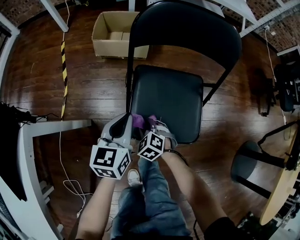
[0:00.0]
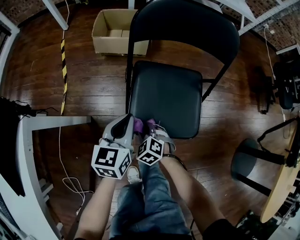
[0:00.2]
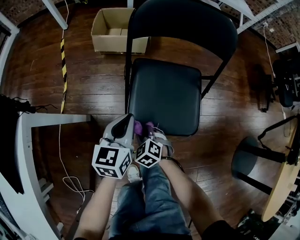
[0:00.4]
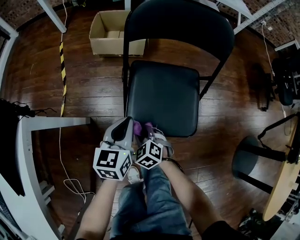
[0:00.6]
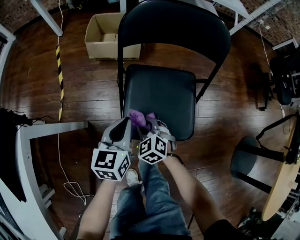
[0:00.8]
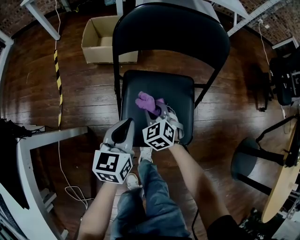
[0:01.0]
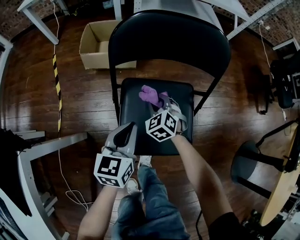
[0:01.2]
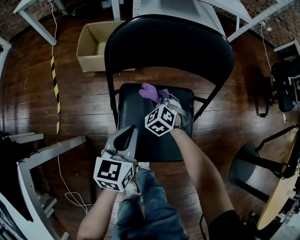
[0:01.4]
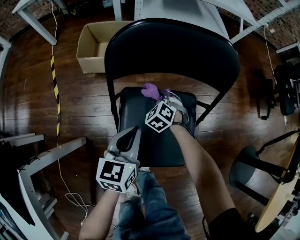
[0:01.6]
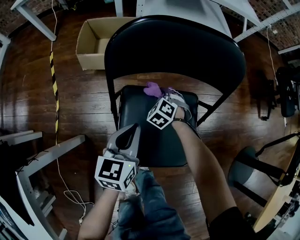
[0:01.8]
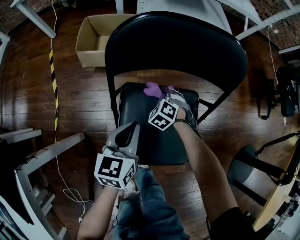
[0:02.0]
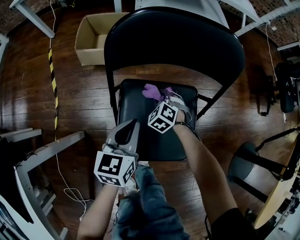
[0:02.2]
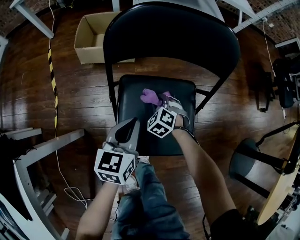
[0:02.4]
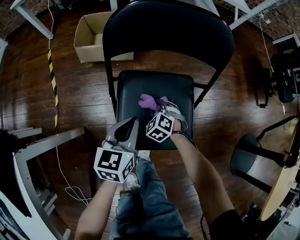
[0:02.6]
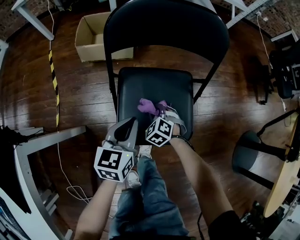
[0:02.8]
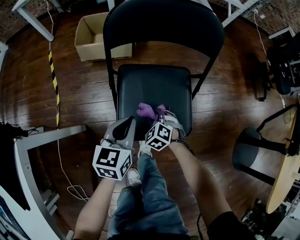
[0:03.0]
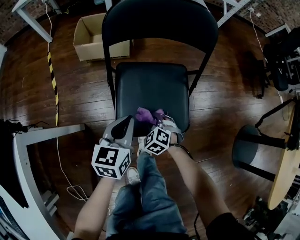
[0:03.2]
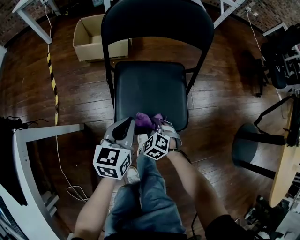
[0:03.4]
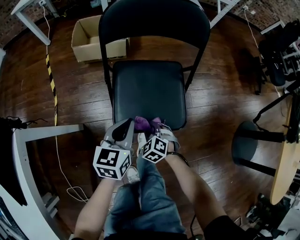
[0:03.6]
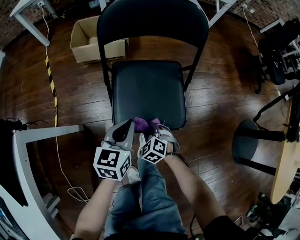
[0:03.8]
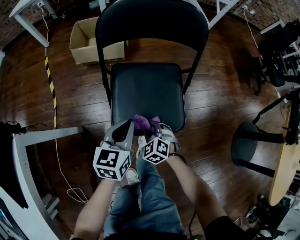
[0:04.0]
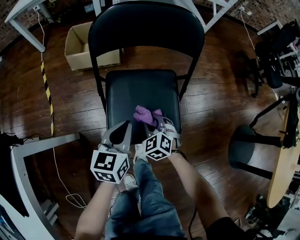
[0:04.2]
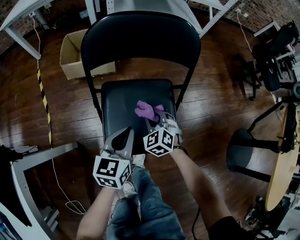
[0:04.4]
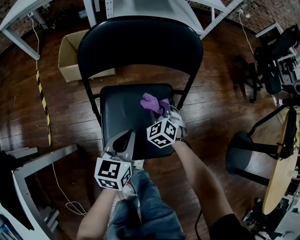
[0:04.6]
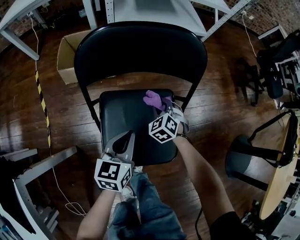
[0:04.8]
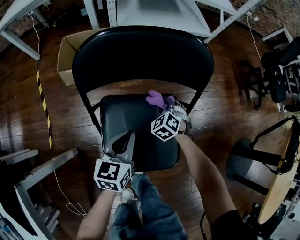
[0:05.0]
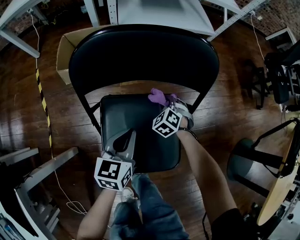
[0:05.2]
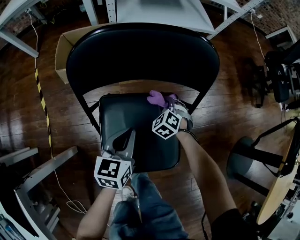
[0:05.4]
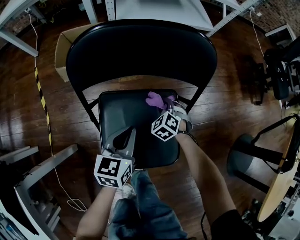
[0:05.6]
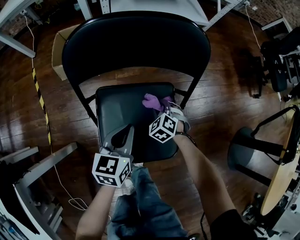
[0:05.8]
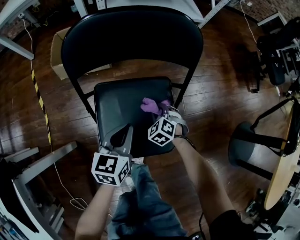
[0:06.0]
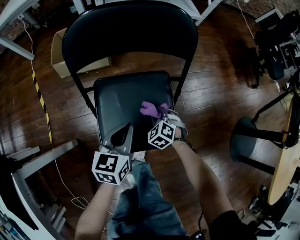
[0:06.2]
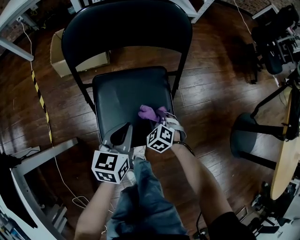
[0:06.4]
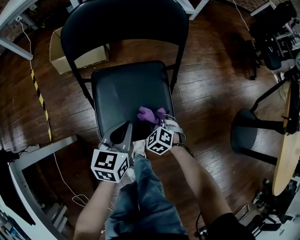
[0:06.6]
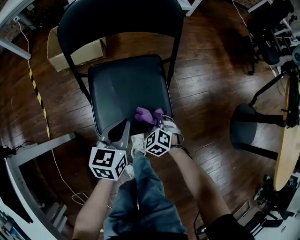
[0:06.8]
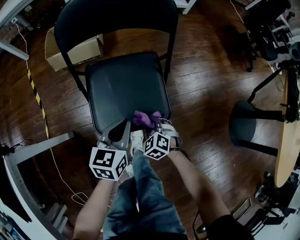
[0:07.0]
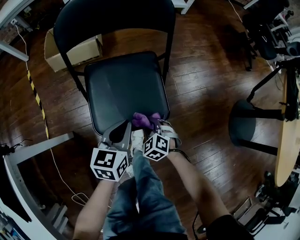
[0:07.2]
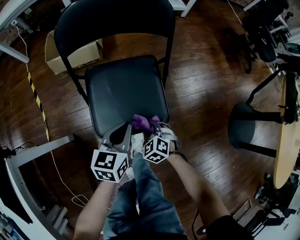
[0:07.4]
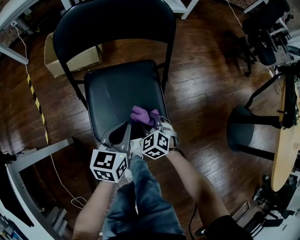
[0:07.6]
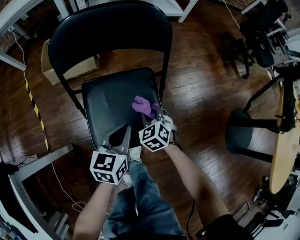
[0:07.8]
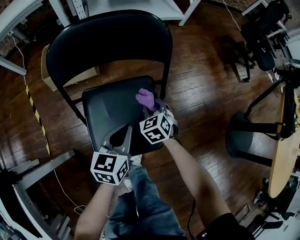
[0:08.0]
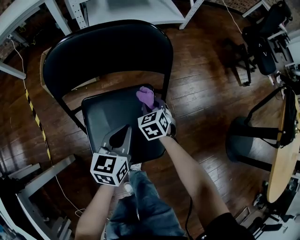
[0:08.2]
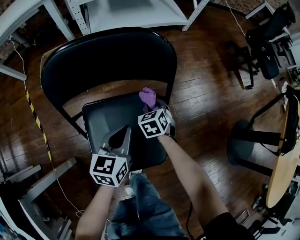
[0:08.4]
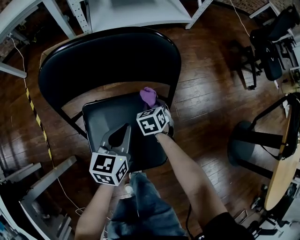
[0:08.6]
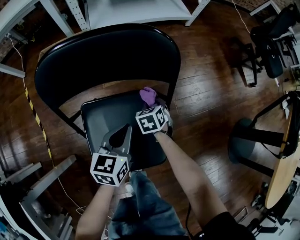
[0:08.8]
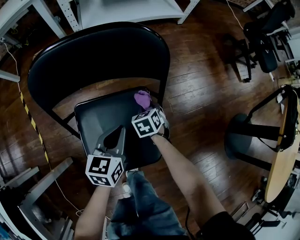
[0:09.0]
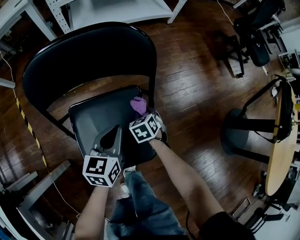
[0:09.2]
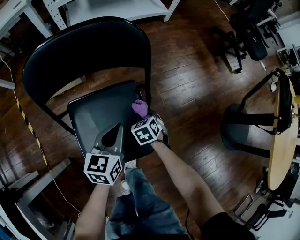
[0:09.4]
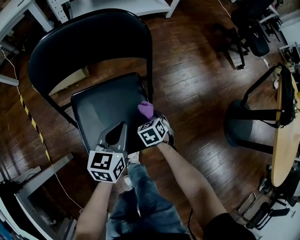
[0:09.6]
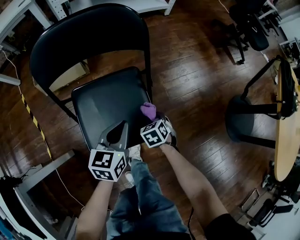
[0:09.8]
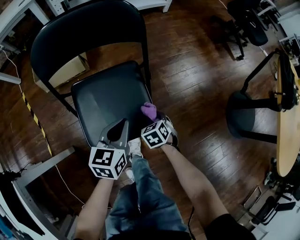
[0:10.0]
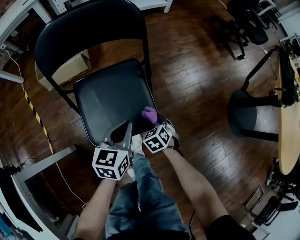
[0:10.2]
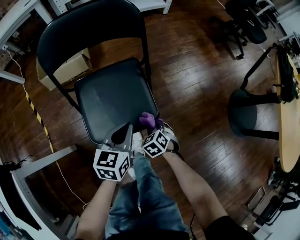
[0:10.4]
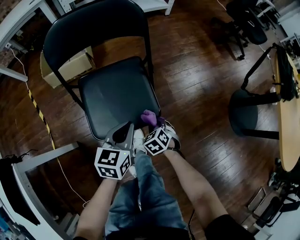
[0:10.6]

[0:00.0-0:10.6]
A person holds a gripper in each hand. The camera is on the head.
0:00.0 to 0:01.6: The left gripper is displaced forward and to the right by approximately 15 cm, while the right gripper goes about 30 cm forward and to the right.
0:01.6 to 0:03.0: The left gripper moves backward, approximately 10 cm; the right gripper travels backward by approximately 20 cm.
0:03.0 to 0:04.6: The left gripper shifts about 10 cm to the right and forward. Meanwhile the right gripper is displaced forward, to the right and upward by some 20 cm.
0:04.6 to 0:06.0: The right gripper shifts approximately 10 cm downward, and moves about 10 cm forward and comes back. Meanwhile the left gripper moves approximately 10 cm forward and comes back.
0:06.0 to 0:07.6: The left gripper travels backward by roughly 10 cm. The right gripper is displaced backward by about 15 cm.
0:07.6 to 0:09.0: The two grippers go roughly 20 cm forward. The right gripper rotates approximately 30 degrees.
0:09.0 to 0:10.6: The right gripper moves backward, approximately 30 cm; the left gripper heads backward and to the right, covering approximately 20 cm.

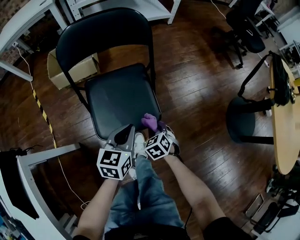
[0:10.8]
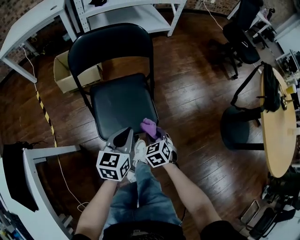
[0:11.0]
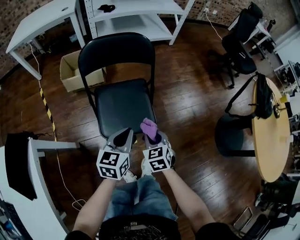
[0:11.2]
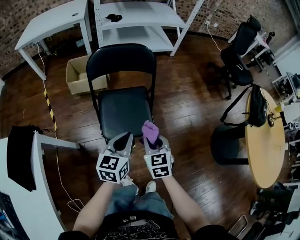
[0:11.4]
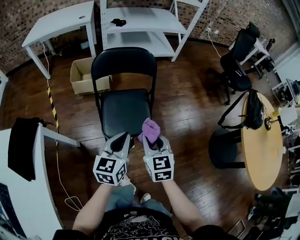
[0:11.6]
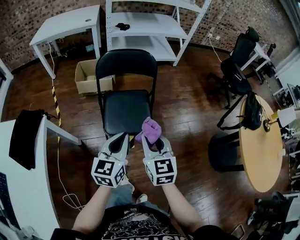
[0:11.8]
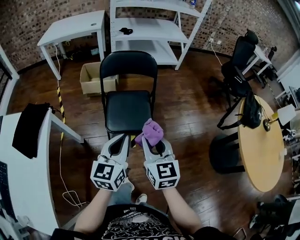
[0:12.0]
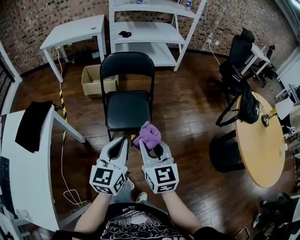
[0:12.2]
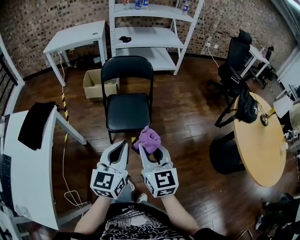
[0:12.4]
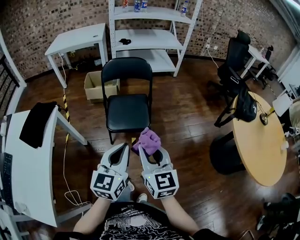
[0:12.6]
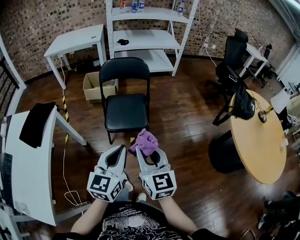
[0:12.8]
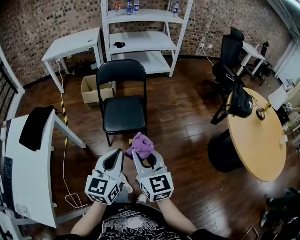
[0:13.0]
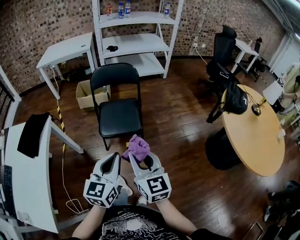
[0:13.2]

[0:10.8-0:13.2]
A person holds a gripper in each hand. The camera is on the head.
0:10.8 to 0:12.0: Both grippers move upward and backward, roughly 40 cm. The left gripper rotates some 30 degrees; the right gripper angles its fingers upward, by about 50 degrees.
0:12.0 to 0:13.2: The two grippers go roughly 15 cm backward.

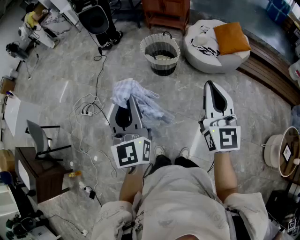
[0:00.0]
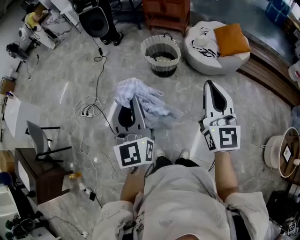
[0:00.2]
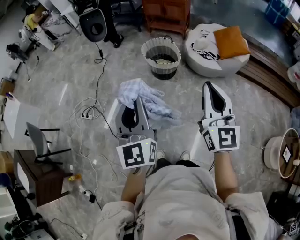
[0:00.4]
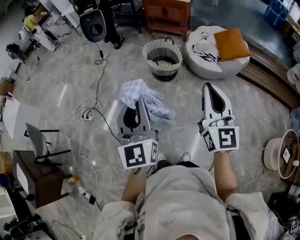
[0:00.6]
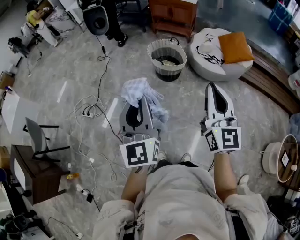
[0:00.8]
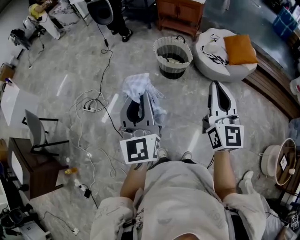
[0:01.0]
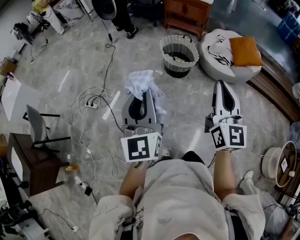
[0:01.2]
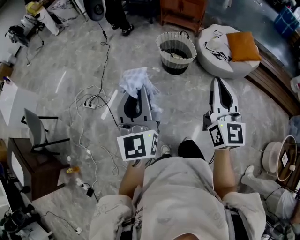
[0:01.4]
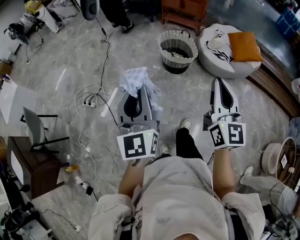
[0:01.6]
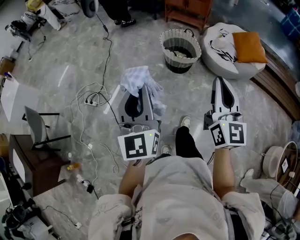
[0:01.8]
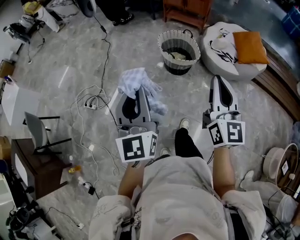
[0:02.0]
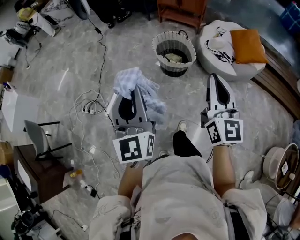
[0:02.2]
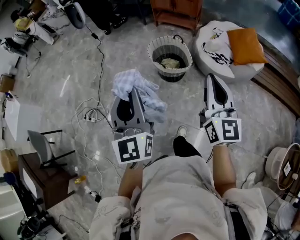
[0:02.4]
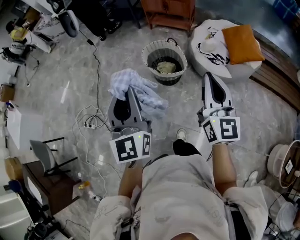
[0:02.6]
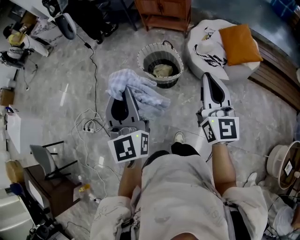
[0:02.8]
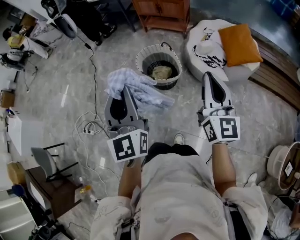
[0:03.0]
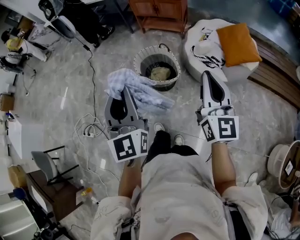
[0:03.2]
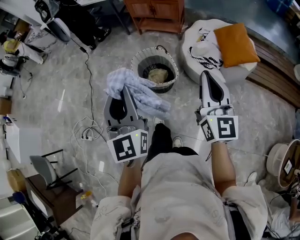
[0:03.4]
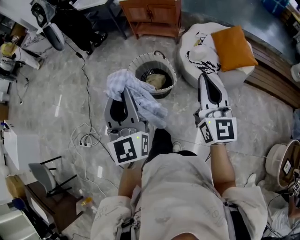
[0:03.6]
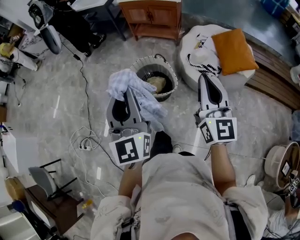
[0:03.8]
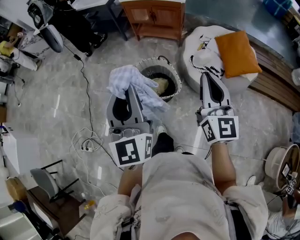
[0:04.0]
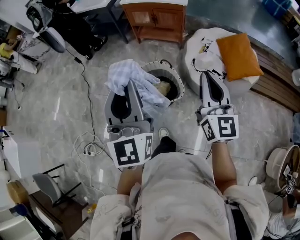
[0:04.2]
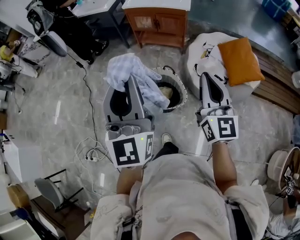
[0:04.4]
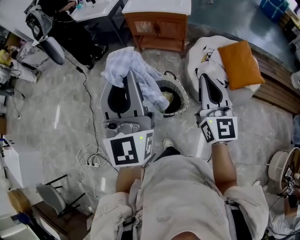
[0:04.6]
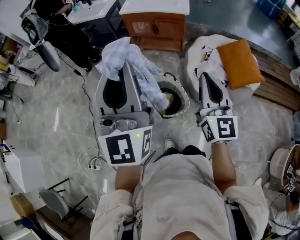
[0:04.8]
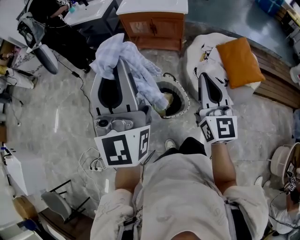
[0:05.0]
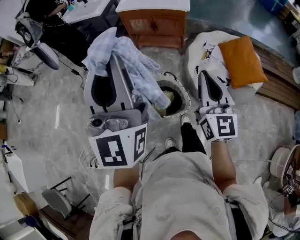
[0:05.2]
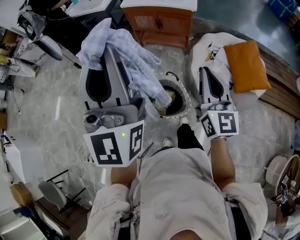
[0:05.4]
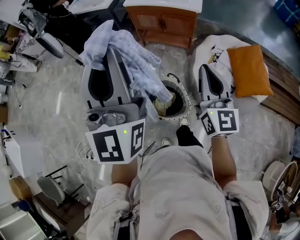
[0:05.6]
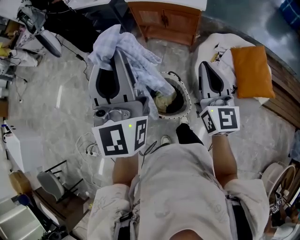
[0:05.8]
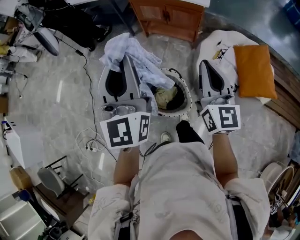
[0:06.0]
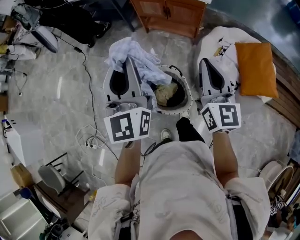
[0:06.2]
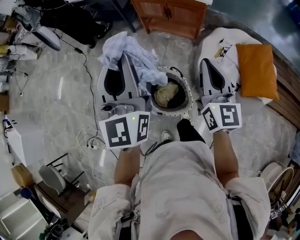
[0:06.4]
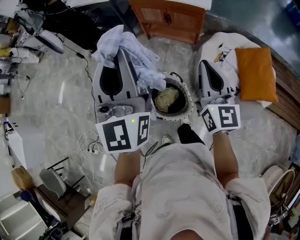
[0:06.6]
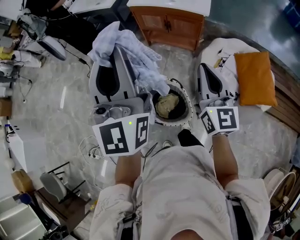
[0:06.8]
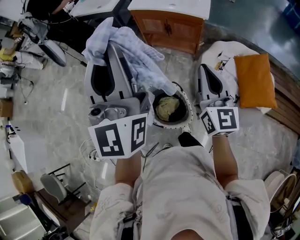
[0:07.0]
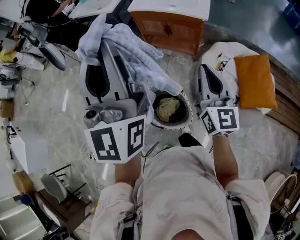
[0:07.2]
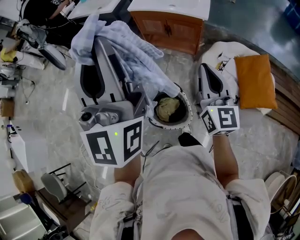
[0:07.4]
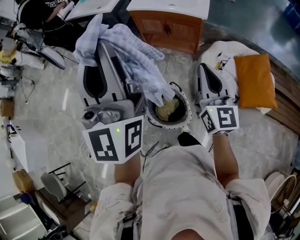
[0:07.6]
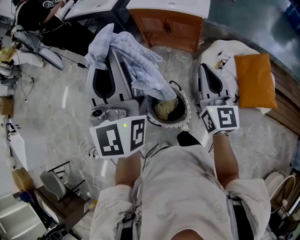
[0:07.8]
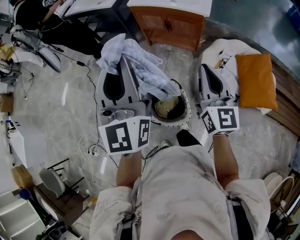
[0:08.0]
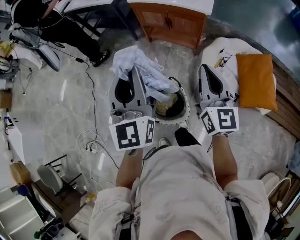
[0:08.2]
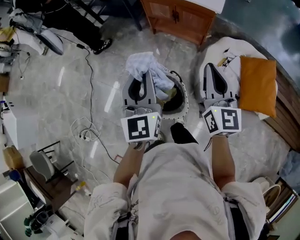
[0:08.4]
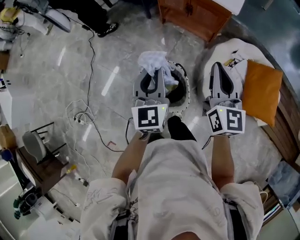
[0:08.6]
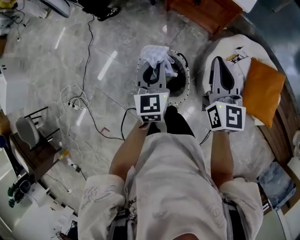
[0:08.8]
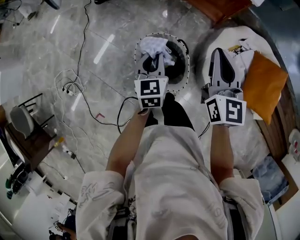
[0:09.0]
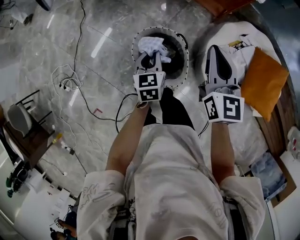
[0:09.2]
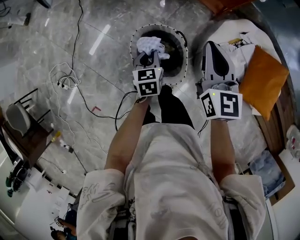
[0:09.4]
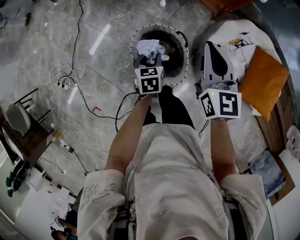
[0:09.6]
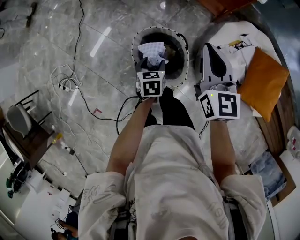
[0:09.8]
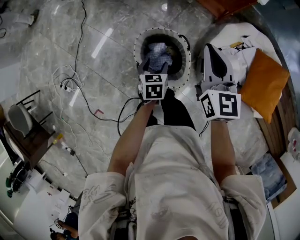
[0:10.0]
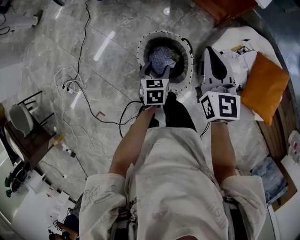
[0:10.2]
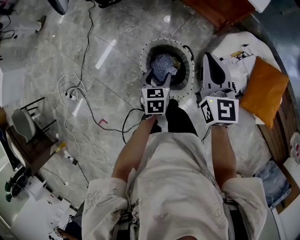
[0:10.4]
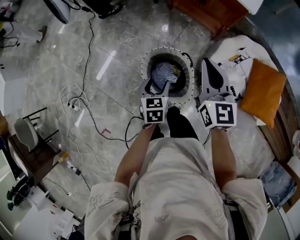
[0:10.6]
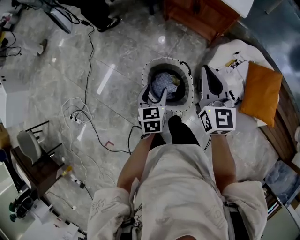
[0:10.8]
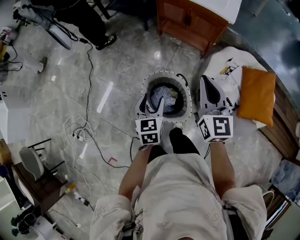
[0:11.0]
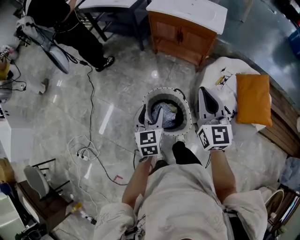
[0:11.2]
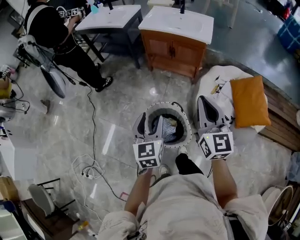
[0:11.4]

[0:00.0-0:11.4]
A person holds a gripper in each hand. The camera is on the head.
0:00.0 to 0:01.4: Both grippers travel together to the left, about 15 cm.
0:01.4 to 0:02.8: Both grippers travel together forward and to the right, approximately 35 cm.
0:02.8 to 0:04.2: The two grippers go approximately 25 cm forward.
0:04.2 to 0:05.6: The grippers both shift forward by about 20 cm.
0:05.6 to 0:07.2: Both grippers travel together forward, approximately 10 cm. The left gripper moves some 15 cm downward and comes back.
0:07.2 to 0:08.6: The left gripper moves downward, some 30 cm, and tips its fingers downward by approximately 40 degrees; the right gripper heads downward, covering approximately 5 cm.
0:08.6 to 0:10.0: The left gripper moves downward, some 30 cm, tips its fingers downward by about 40 degrees, and opens up. Meanwhile the right gripper shifts about 10 cm downward and to the left.
0:10.0 to 0:11.4: The right gripper travels upward and backward by about 20 cm, and turns by approximately 20 degrees. Meanwhile the left gripper heads upward, covering approximately 30 cm, and angles its fingers upward, by roughly 40 degrees.
